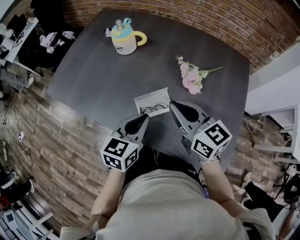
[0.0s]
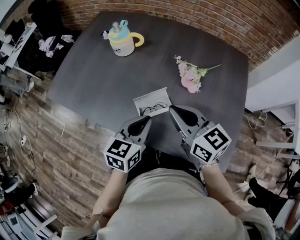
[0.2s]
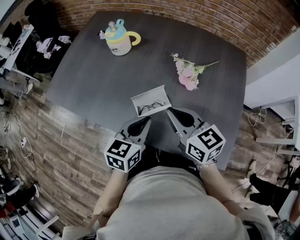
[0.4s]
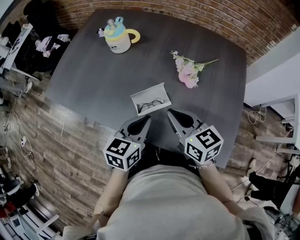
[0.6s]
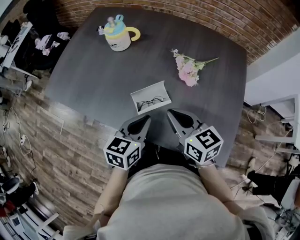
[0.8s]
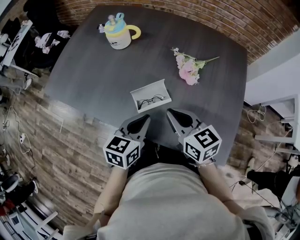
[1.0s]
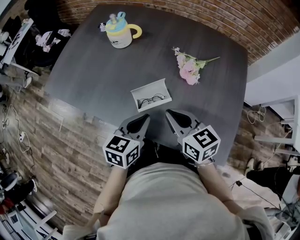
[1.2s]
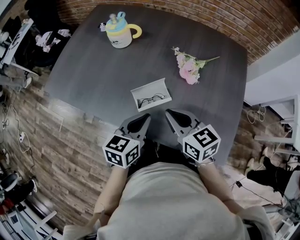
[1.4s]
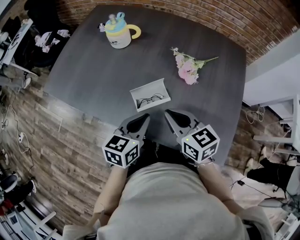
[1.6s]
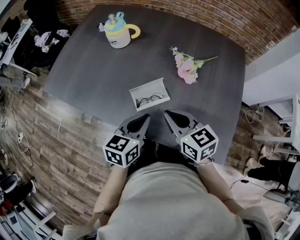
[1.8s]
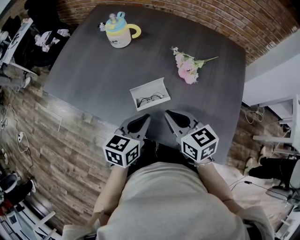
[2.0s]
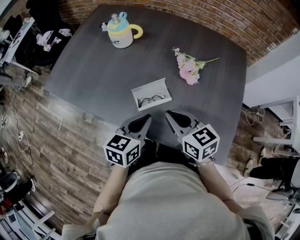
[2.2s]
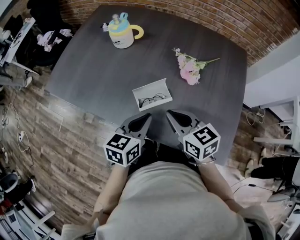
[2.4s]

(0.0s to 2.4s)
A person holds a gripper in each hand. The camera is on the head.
0.0s - 1.2s: The right gripper heads downward, covering approximately 5 cm.
1.2s - 2.4s: Both grippers stay about where they are.

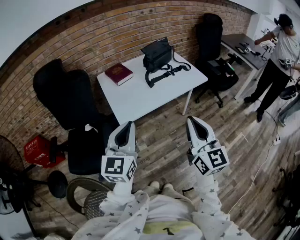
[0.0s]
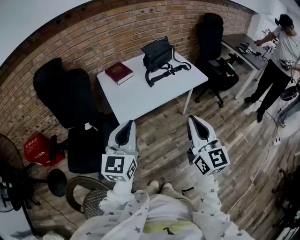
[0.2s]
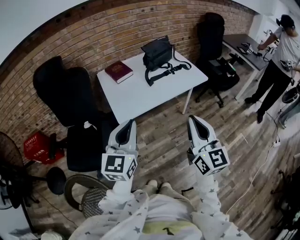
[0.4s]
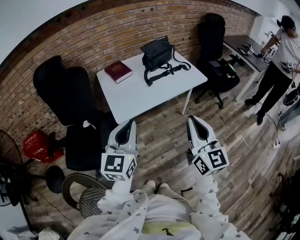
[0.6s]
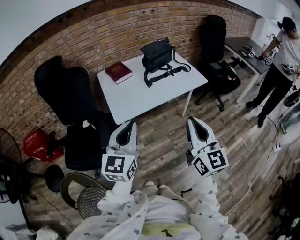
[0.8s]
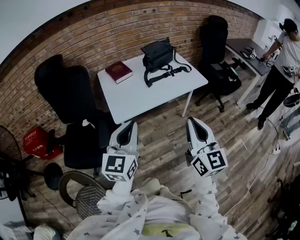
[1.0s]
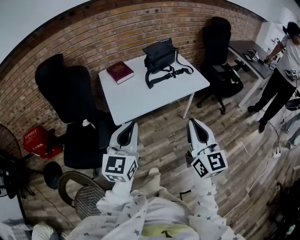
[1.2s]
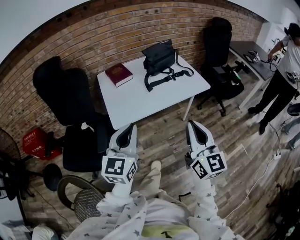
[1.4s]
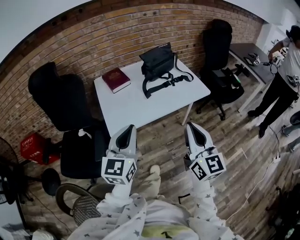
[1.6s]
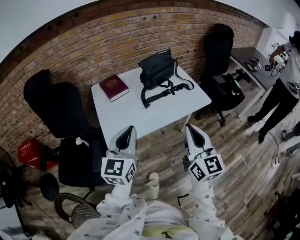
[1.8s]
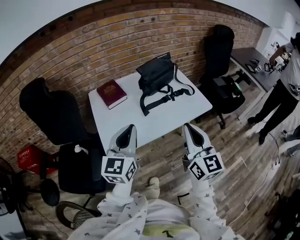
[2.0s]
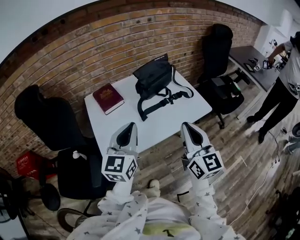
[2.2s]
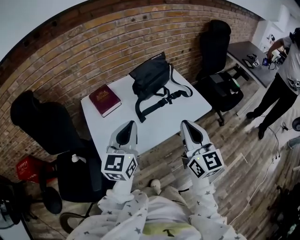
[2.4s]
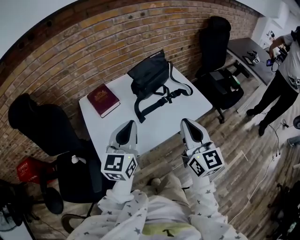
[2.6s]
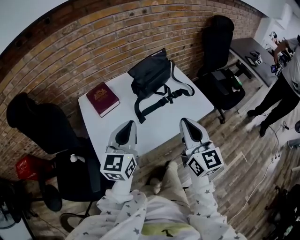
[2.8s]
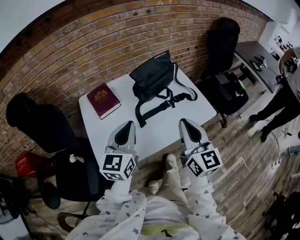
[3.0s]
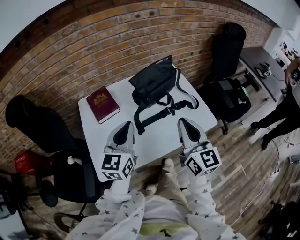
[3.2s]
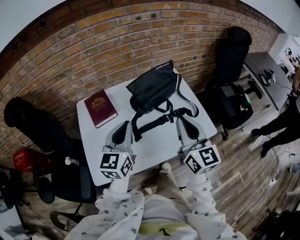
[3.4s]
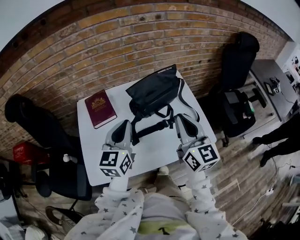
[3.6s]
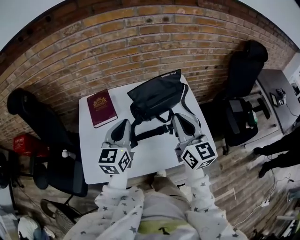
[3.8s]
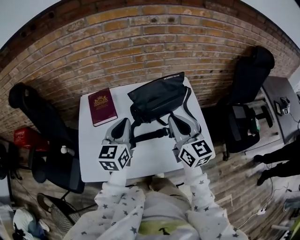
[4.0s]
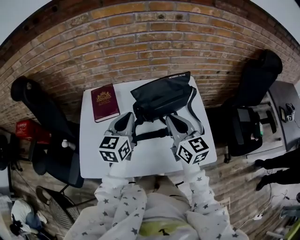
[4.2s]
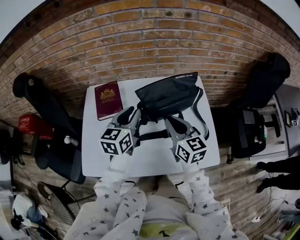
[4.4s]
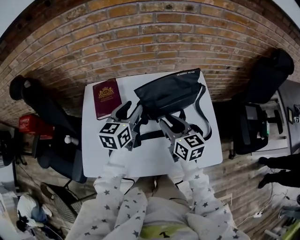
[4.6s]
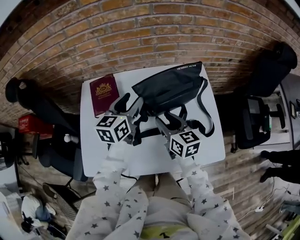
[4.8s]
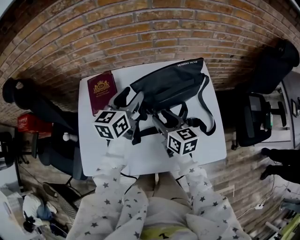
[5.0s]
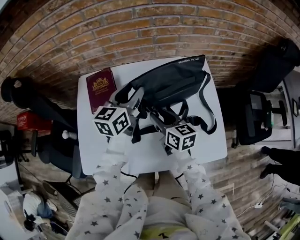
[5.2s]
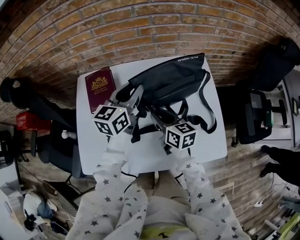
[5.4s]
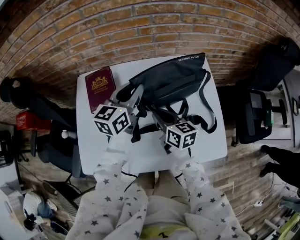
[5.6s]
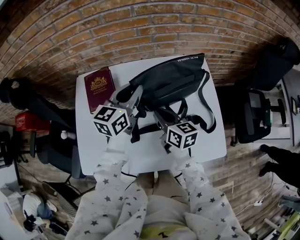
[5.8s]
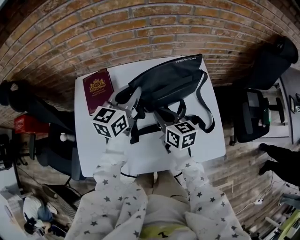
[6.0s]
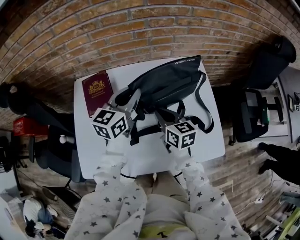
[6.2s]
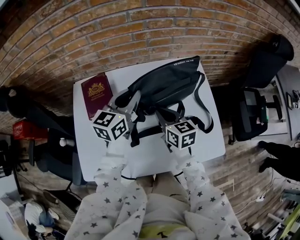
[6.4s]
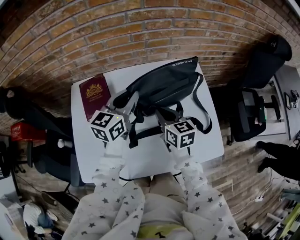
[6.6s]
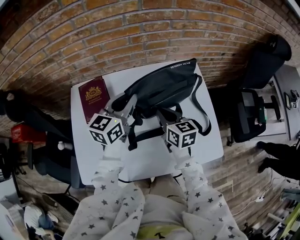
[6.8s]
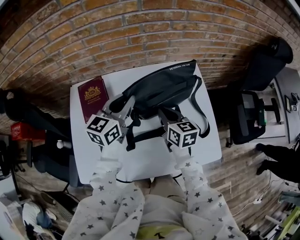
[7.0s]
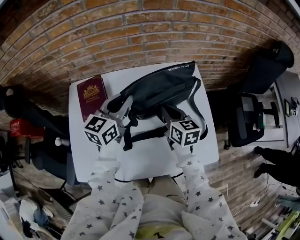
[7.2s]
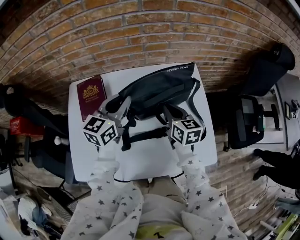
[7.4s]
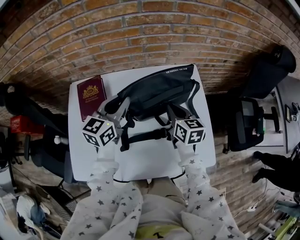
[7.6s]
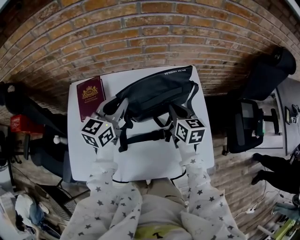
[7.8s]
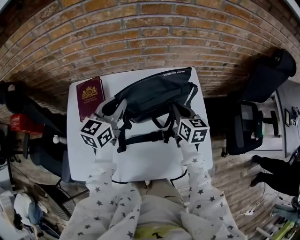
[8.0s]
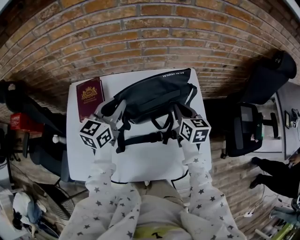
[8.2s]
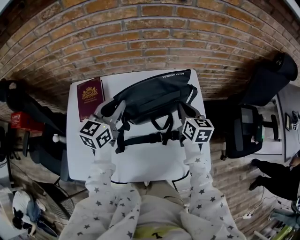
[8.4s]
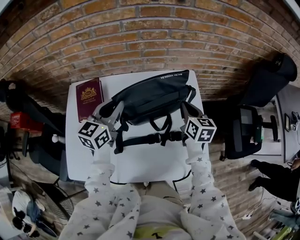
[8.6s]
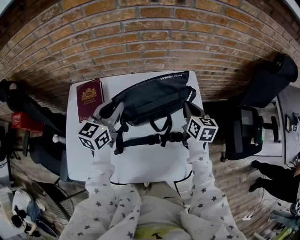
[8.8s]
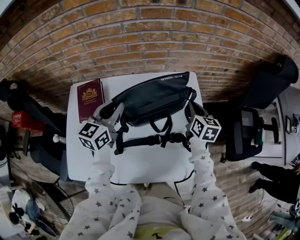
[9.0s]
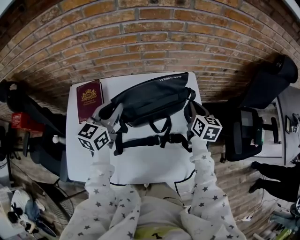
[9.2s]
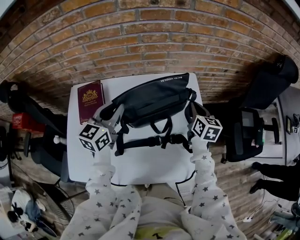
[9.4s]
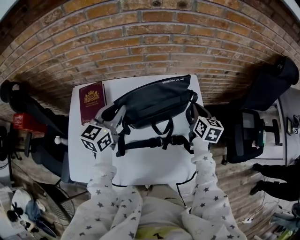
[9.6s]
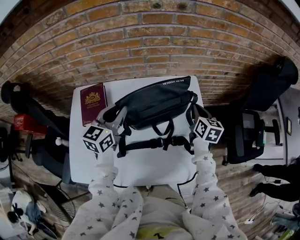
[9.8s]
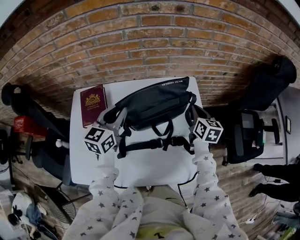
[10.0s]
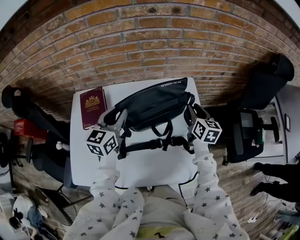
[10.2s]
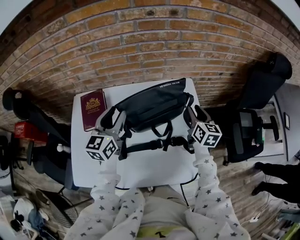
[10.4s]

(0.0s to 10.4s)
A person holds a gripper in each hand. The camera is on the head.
0.0s - 1.4s: The grippers both shift to the right by some 5 cm.
1.4s - 3.0s: Both grippers travel together forward, about 30 cm.
3.0s - 4.4s: The left gripper is displaced forward by some 20 cm, changes its angle by approximately 20 degrees, and opens its fingers. The right gripper shifts roughly 25 cm forward and downward, and turns by roughly 30 degrees.
4.4s - 6.0s: The left gripper heads forward, covering about 5 cm, and opens and closes again. Meanwhile the right gripper is displaced downward by roughly 10 cm, and opens, then closes once more.
6.0s - 7.4s: The right gripper shifts approximately 10 cm to the right and forward.
7.4s - 9.0s: The right gripper heads to the right and forward, covering some 15 cm.
9.0s - 10.4s: The left gripper opens its fingers. The right gripper opens its fingers.

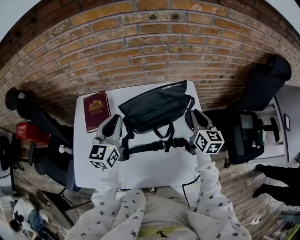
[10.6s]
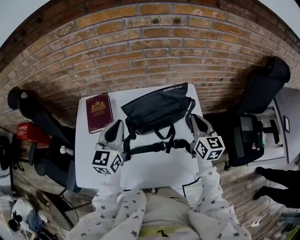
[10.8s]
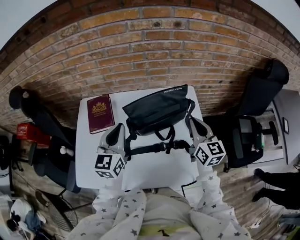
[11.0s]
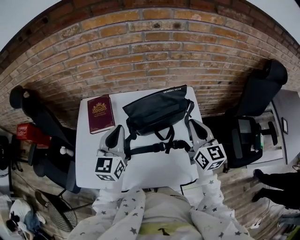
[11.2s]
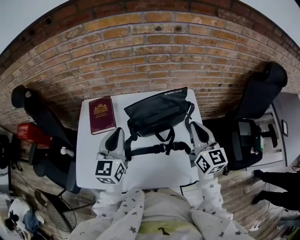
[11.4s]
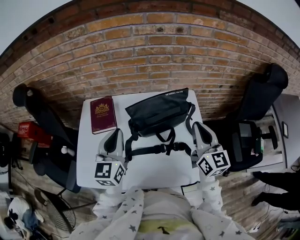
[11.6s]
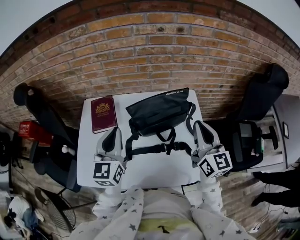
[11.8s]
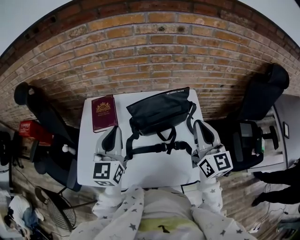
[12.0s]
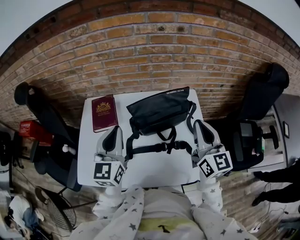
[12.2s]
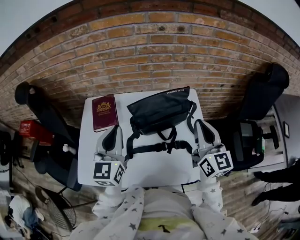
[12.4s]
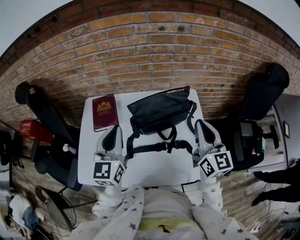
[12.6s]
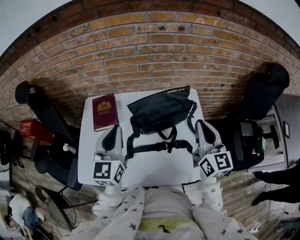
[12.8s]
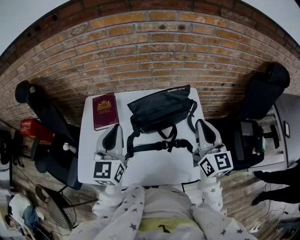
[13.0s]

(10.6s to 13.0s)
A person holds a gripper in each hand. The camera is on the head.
10.6s - 11.8s: The left gripper moves backward and upward, approximately 10 cm, while the right gripper goes about 15 cm upward and backward.
11.8s - 13.0s: There are only small adjustments of the grippers.

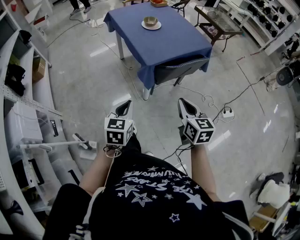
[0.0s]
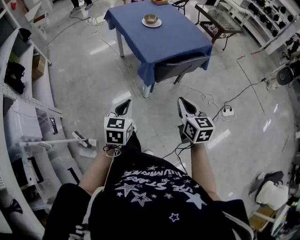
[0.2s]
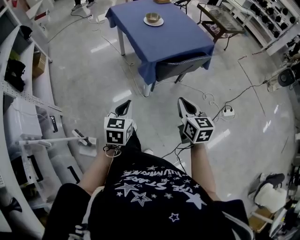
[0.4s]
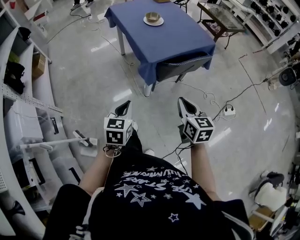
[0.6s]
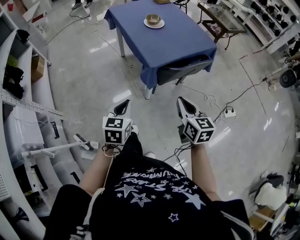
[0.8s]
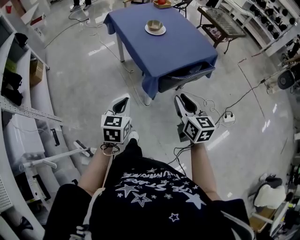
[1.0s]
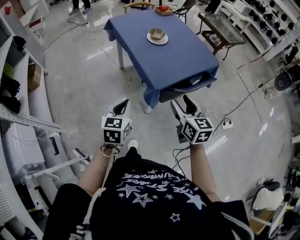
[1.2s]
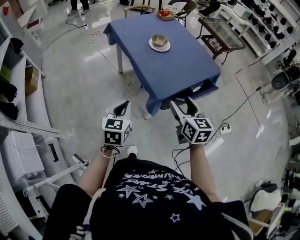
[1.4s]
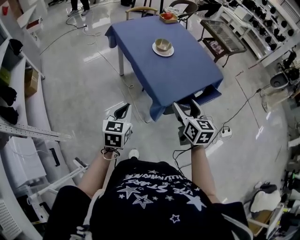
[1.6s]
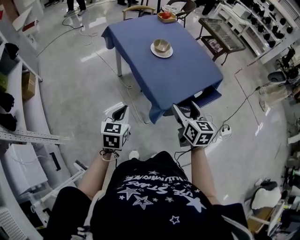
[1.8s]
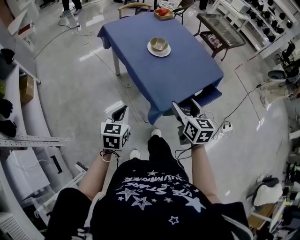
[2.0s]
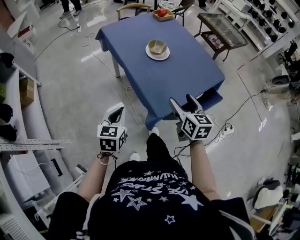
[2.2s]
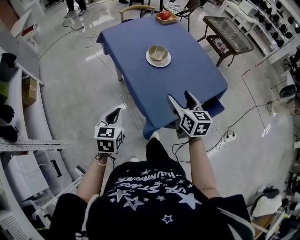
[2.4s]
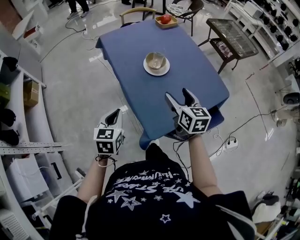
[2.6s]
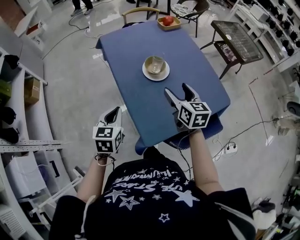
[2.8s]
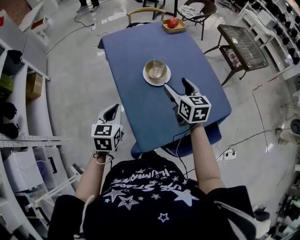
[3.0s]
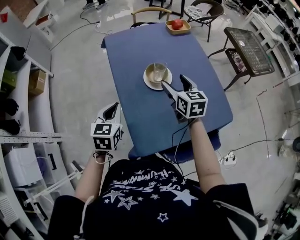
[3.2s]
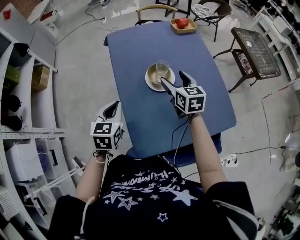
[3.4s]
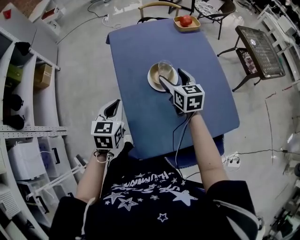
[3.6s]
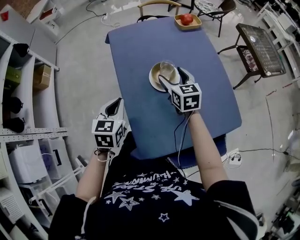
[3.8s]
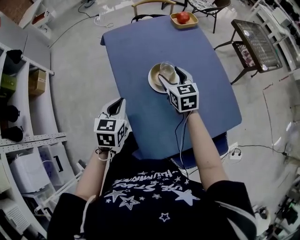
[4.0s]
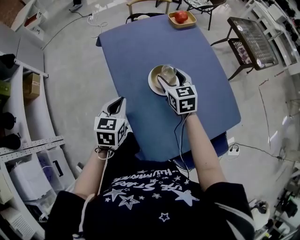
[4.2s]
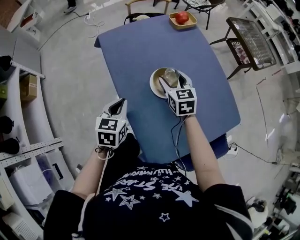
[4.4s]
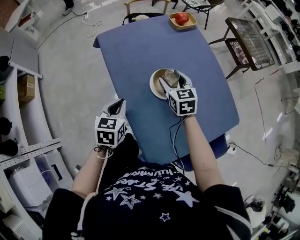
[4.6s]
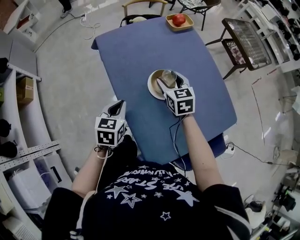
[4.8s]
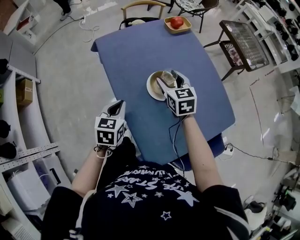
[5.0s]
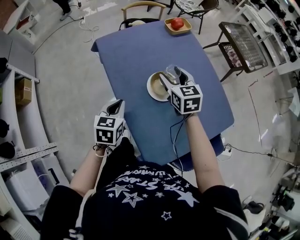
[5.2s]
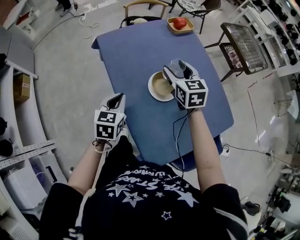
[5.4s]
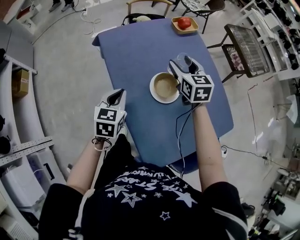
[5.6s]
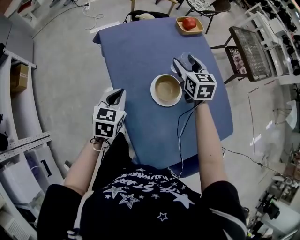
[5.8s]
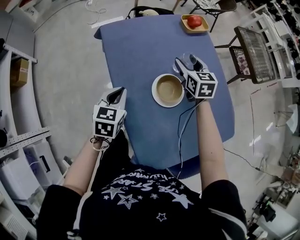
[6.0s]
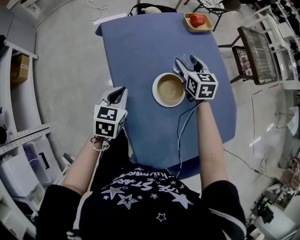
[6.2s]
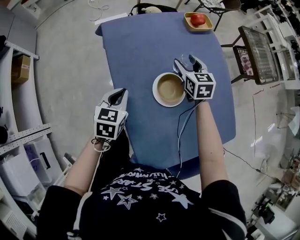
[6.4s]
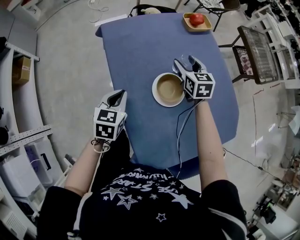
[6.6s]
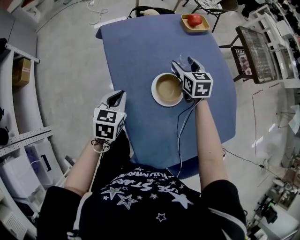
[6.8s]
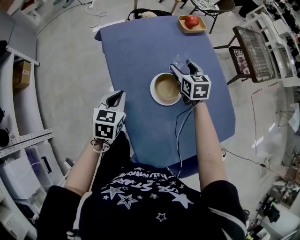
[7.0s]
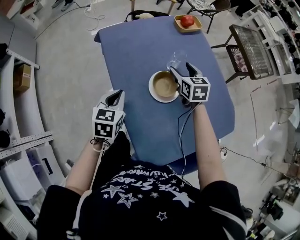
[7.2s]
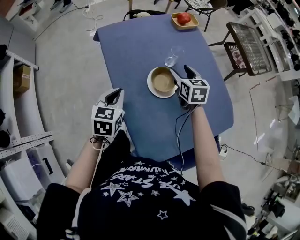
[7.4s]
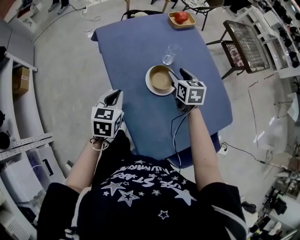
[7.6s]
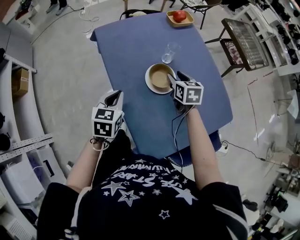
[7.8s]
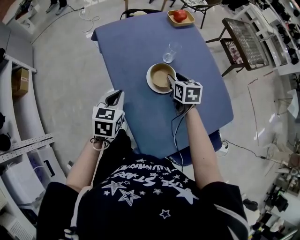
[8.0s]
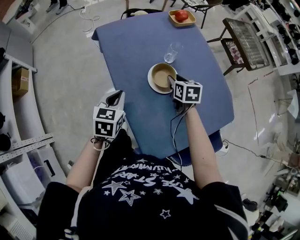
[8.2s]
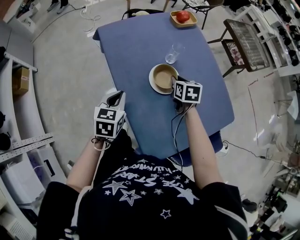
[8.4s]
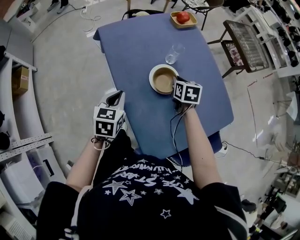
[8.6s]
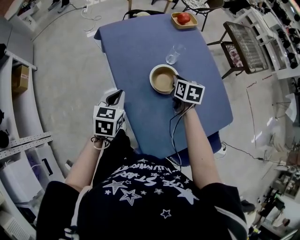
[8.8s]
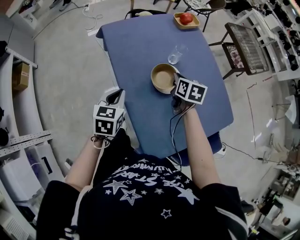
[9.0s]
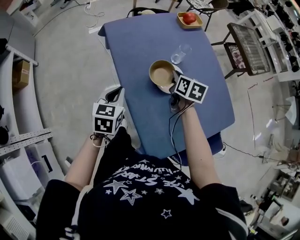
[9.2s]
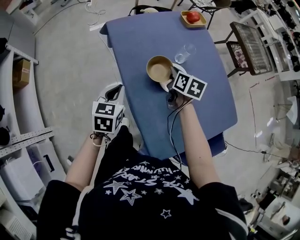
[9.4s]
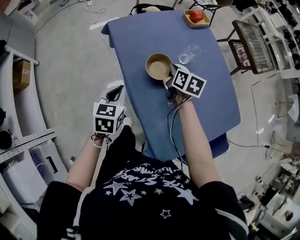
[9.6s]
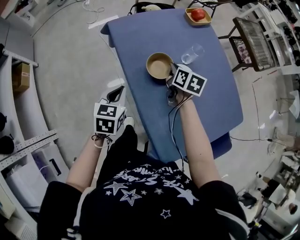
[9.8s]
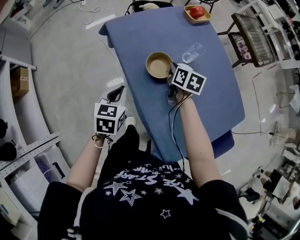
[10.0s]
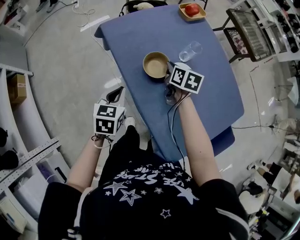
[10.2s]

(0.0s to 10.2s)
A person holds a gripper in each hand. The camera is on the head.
0.0s - 1.4s: The grippers both shift forward by about 20 cm. The right gripper opens.
1.4s - 3.0s: Both grippers move forward, roughly 30 cm.
3.0s - 4.4s: The right gripper goes approximately 15 cm forward and downward. Meanwhile the left gripper moves forward, some 15 cm.
4.4s - 5.8s: The right gripper shifts about 10 cm forward. The left gripper heads forward, covering approximately 5 cm.
5.8s - 7.2s: The right gripper is displaced downward by approximately 5 cm.
7.2s - 8.8s: The right gripper heads backward, covering about 5 cm, swivels roughly 20 degrees, and closes up.
8.8s - 10.2s: The right gripper shifts approximately 10 cm to the left and forward; the left gripper travels to the left by some 5 cm.
